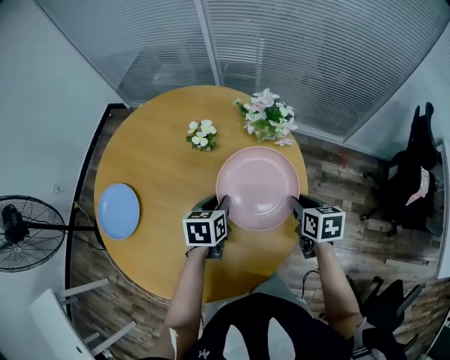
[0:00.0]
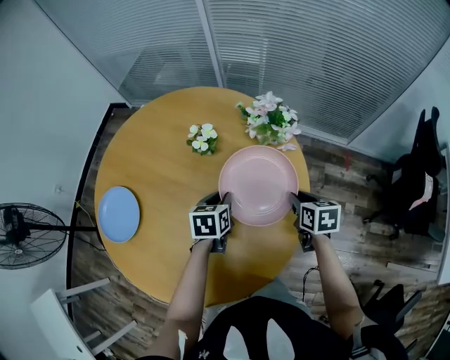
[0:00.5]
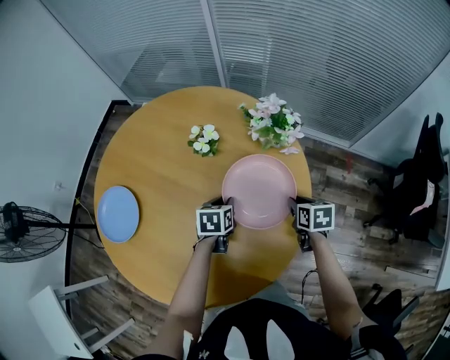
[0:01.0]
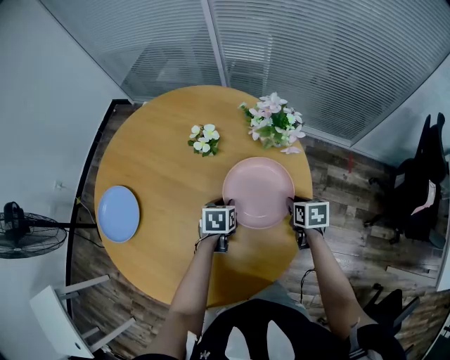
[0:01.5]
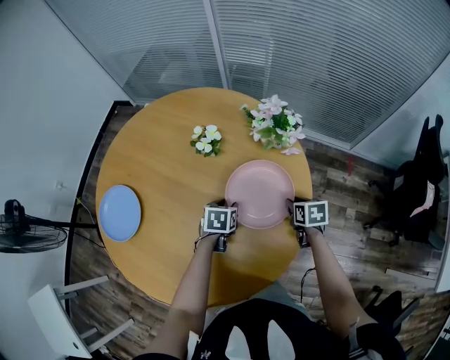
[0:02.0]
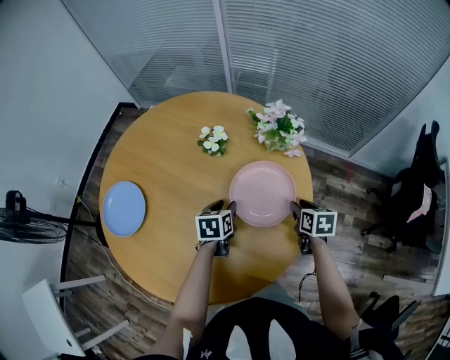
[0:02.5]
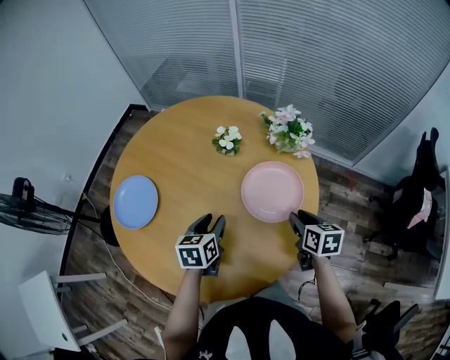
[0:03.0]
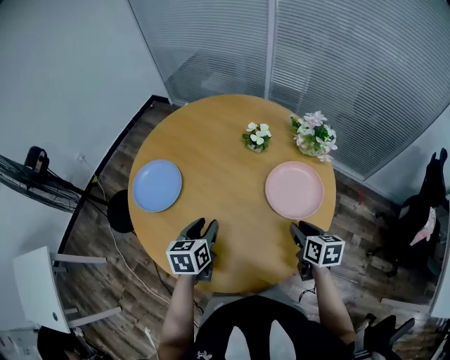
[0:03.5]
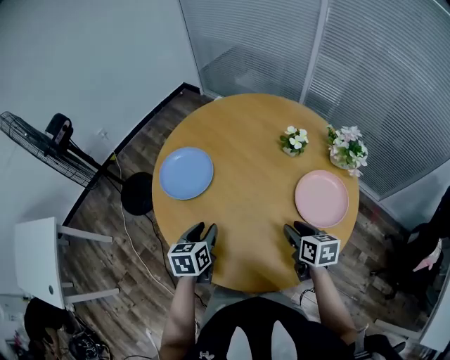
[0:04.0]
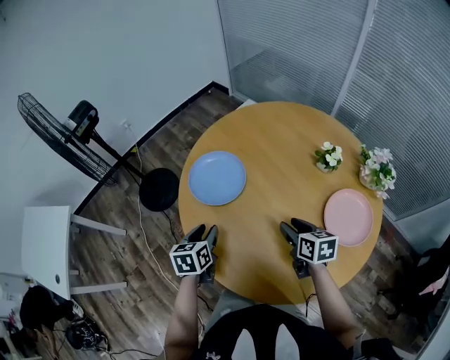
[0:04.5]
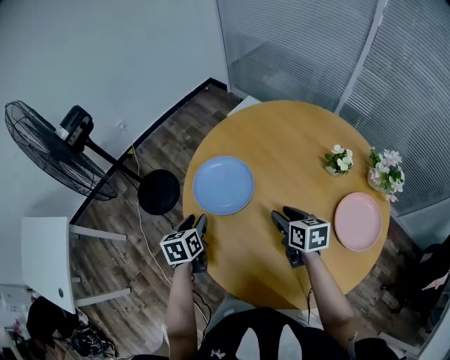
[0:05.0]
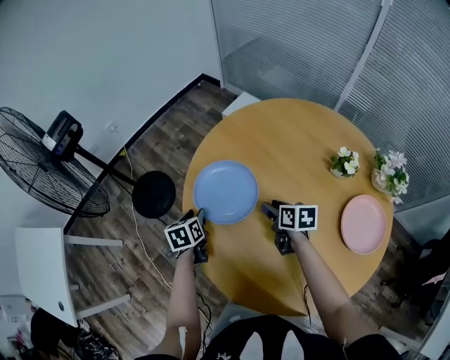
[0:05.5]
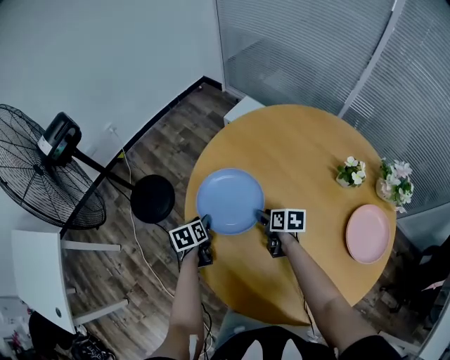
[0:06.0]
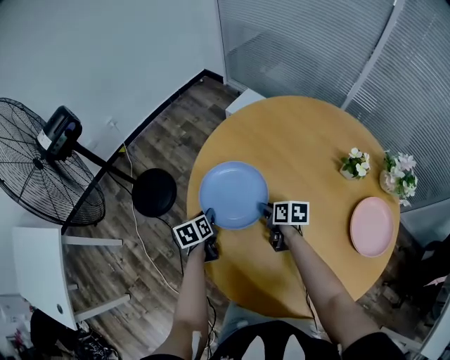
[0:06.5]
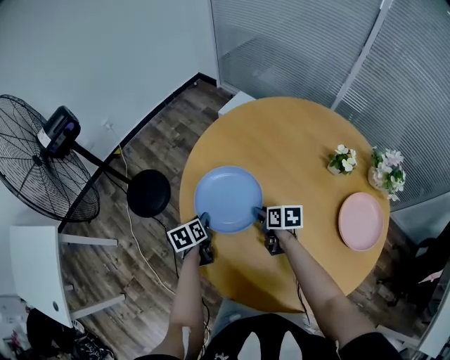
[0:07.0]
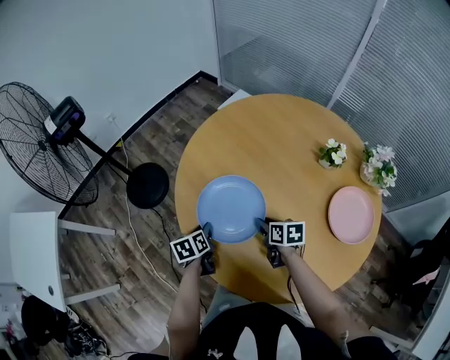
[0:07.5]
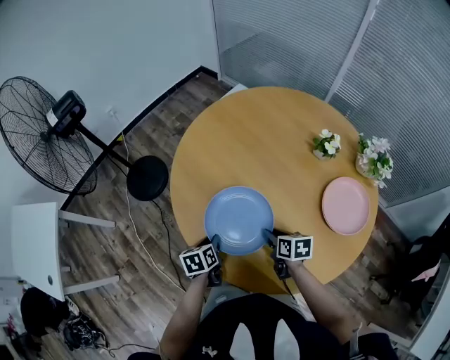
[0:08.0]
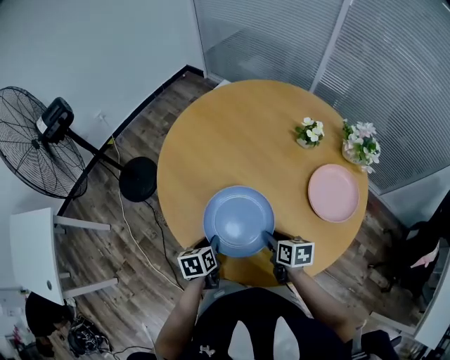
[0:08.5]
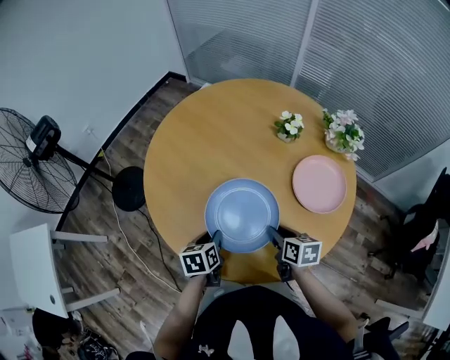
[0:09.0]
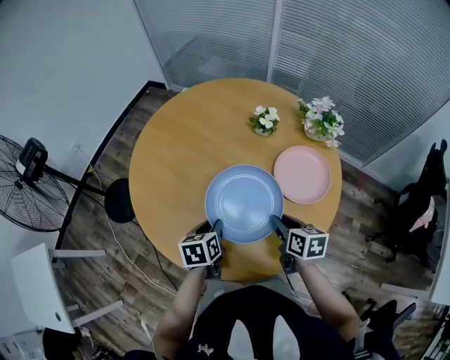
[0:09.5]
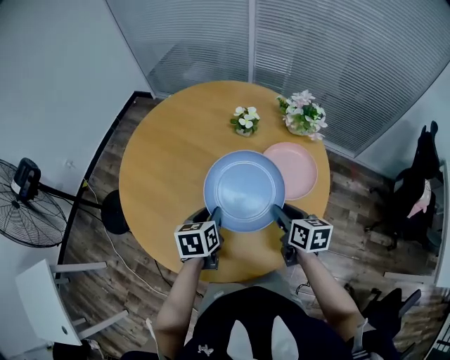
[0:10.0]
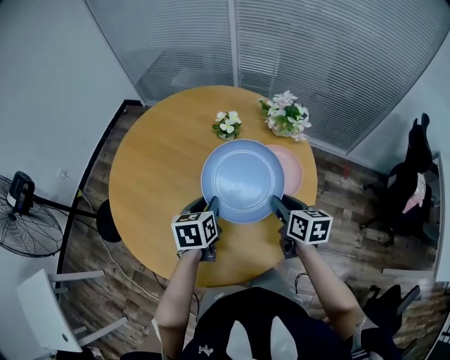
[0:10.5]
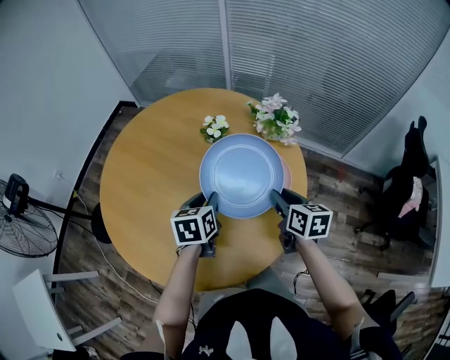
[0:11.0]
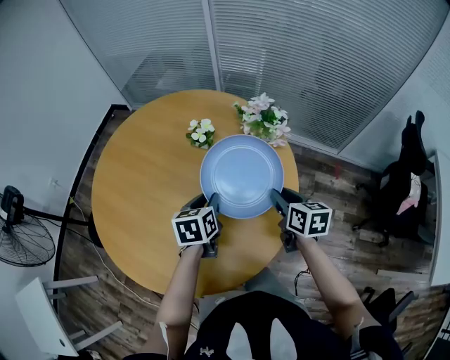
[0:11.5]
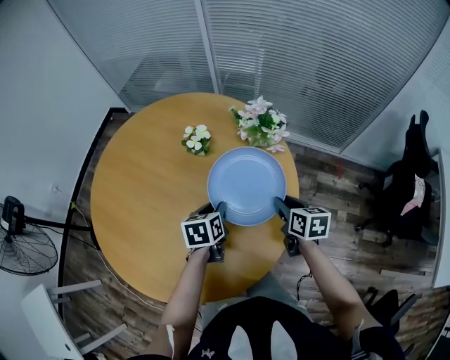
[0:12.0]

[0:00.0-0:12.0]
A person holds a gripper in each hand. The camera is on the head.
0:00.0 to 0:02.0: Both grippers move downward, roughly 10 cm. The left gripper opens.
0:02.0 to 0:04.0: The right gripper moves some 30 cm, and turns by approximately 20 degrees, while the left gripper ends up some 40 cm from where it was, and turns by some 40 degrees.
0:04.0 to 0:06.0: Both grippers travel together forward, to the left and downward, approximately 35 cm. The left gripper changes its angle by about 20 degrees.
0:06.0 to 0:08.0: The two grippers go approximately 25 cm backward.
0:08.0 to 0:10.0: Both grippers travel together to the right and upward, some 25 cm. The right gripper swivels about 30 degrees; the left gripper changes its angle by approximately 30 degrees.
0:10.0 to 0:12.0: Both grippers travel together to the right and forward, roughly 20 cm.

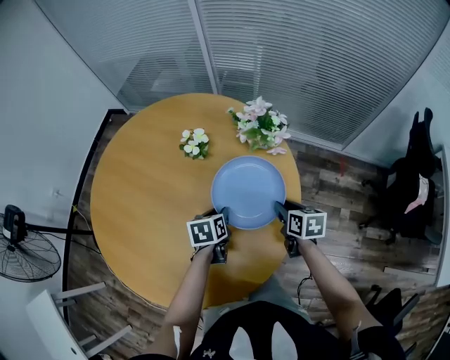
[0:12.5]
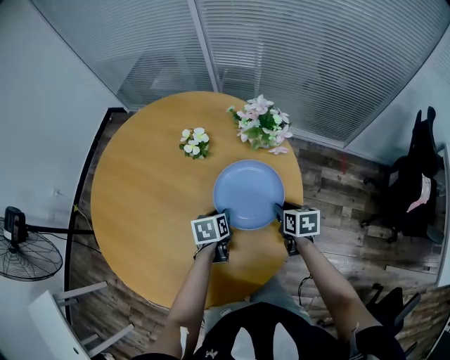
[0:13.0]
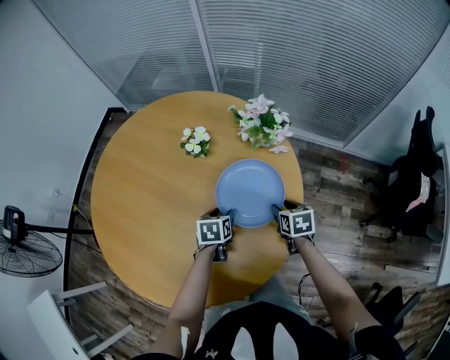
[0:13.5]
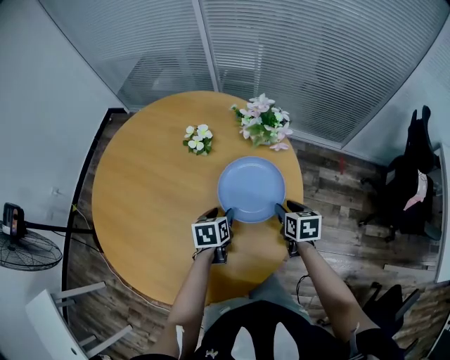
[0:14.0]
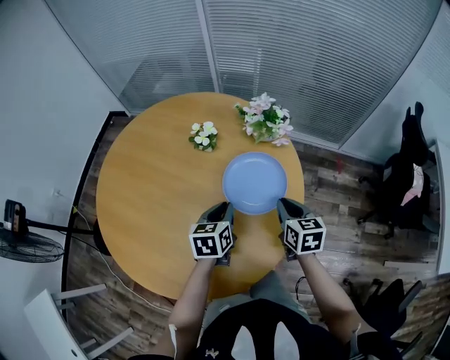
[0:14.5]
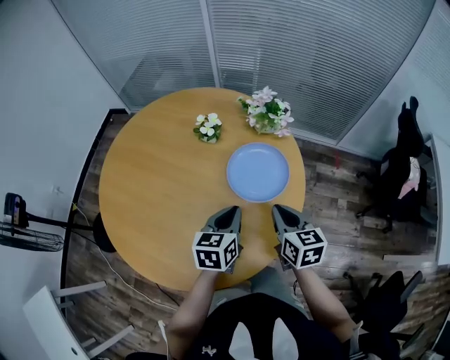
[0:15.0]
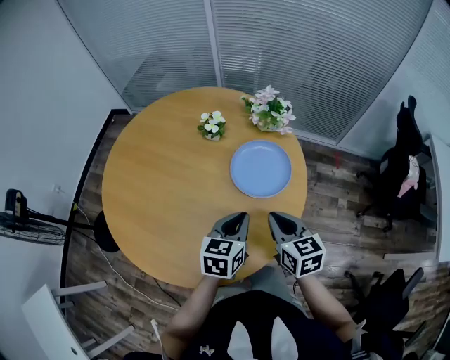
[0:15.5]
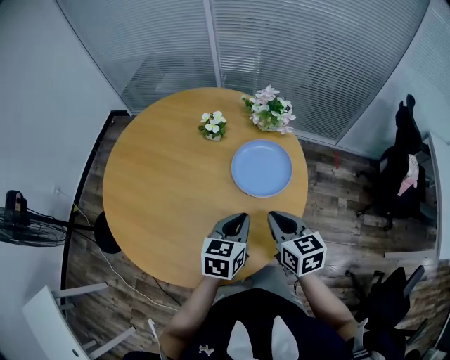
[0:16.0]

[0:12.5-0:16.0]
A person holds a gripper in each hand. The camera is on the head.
0:12.5 to 0:14.5: The left gripper moves upward, about 10 cm, and opens and closes again, while the right gripper is displaced upward and backward by some 10 cm.
0:14.5 to 0:16.0: The left gripper heads backward and upward, covering roughly 10 cm, while the right gripper moves backward, to the left and upward, approximately 15 cm.

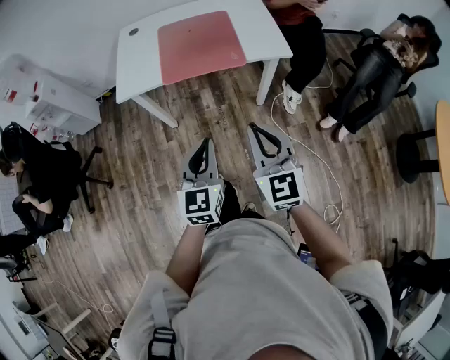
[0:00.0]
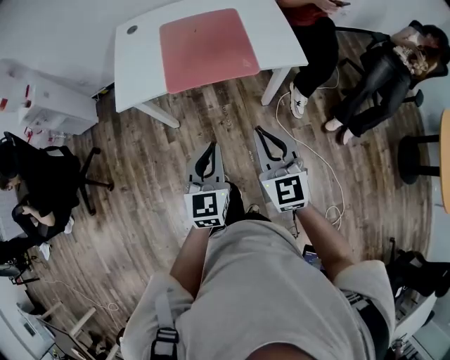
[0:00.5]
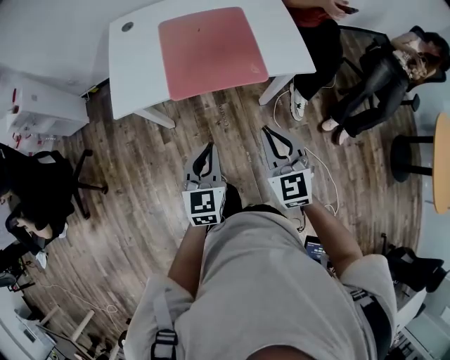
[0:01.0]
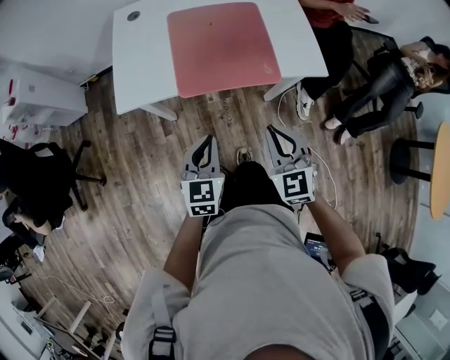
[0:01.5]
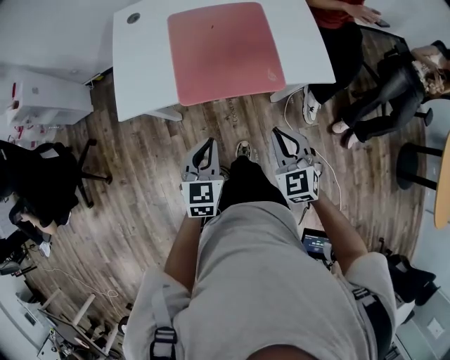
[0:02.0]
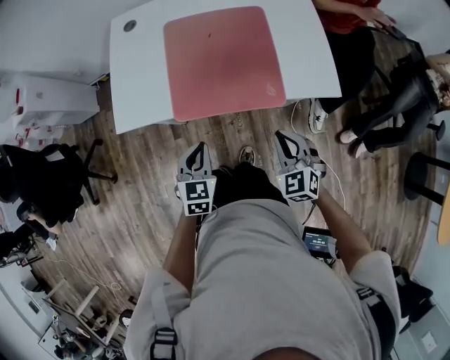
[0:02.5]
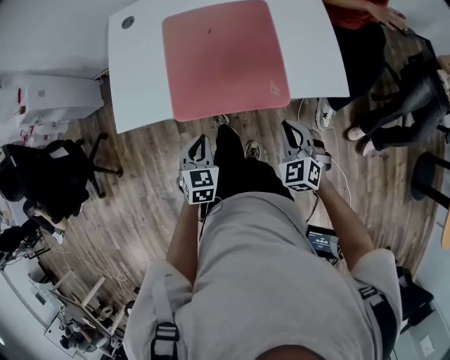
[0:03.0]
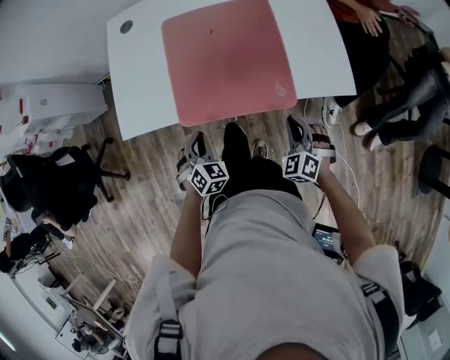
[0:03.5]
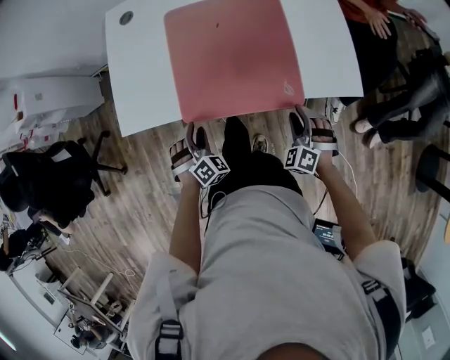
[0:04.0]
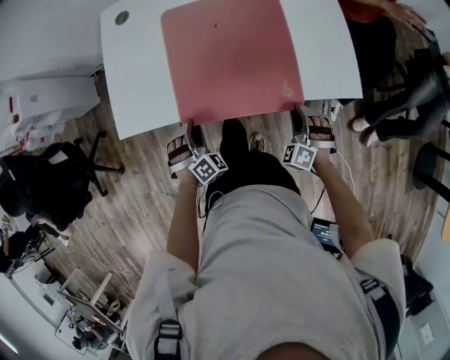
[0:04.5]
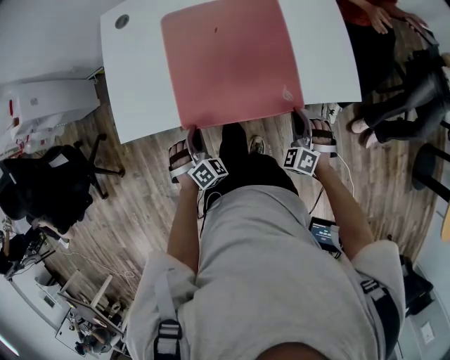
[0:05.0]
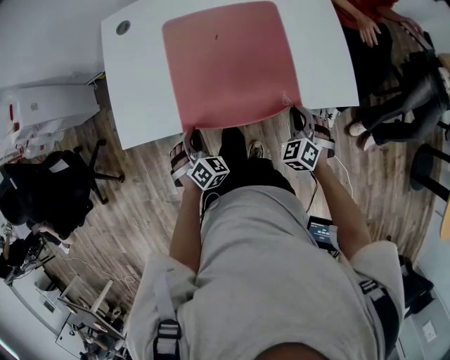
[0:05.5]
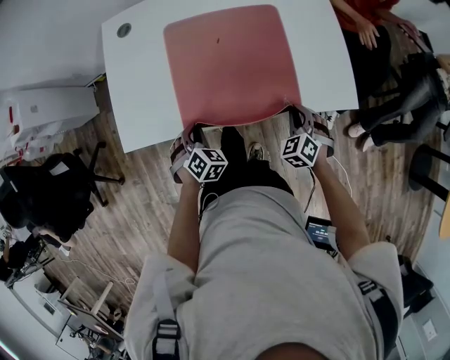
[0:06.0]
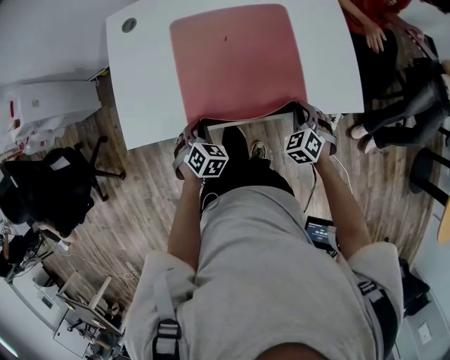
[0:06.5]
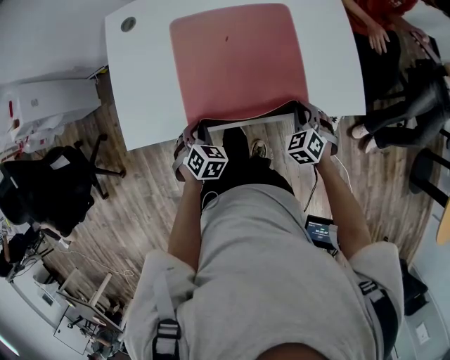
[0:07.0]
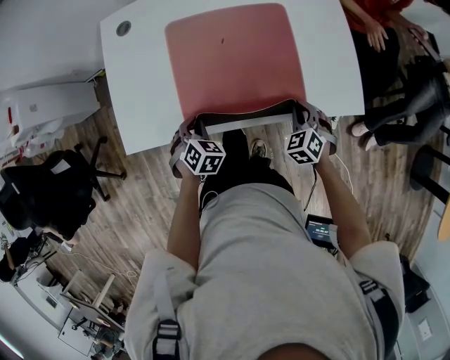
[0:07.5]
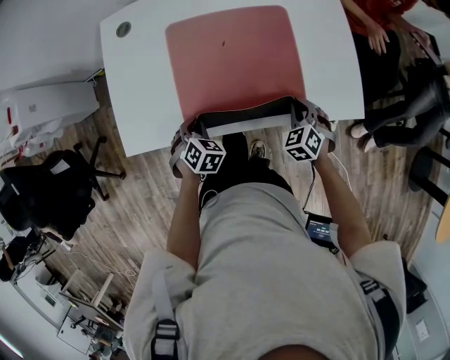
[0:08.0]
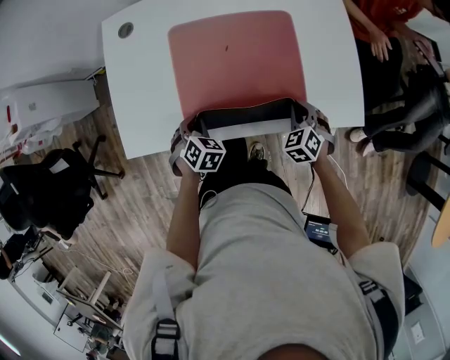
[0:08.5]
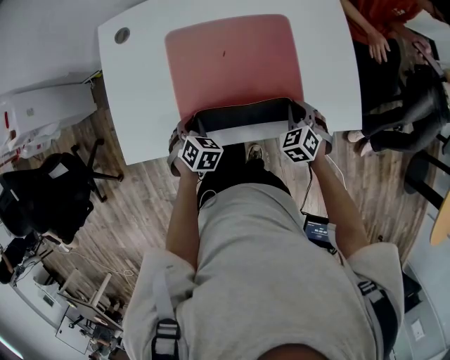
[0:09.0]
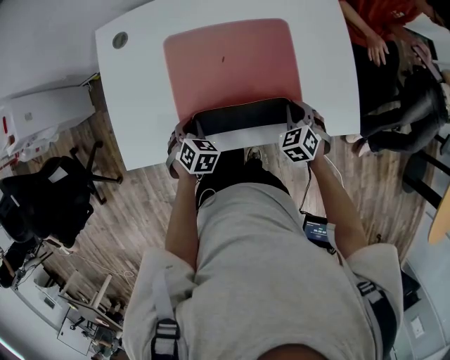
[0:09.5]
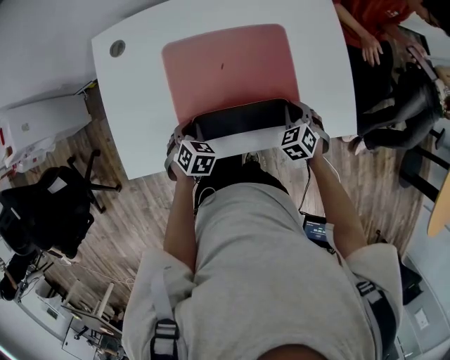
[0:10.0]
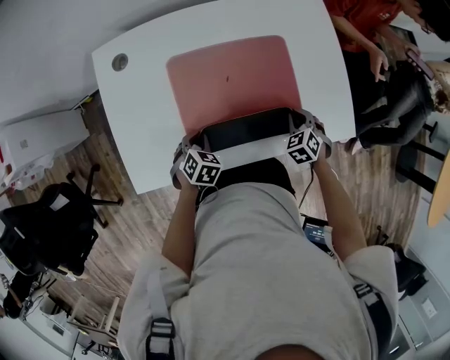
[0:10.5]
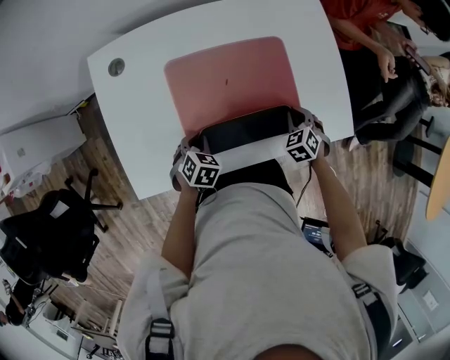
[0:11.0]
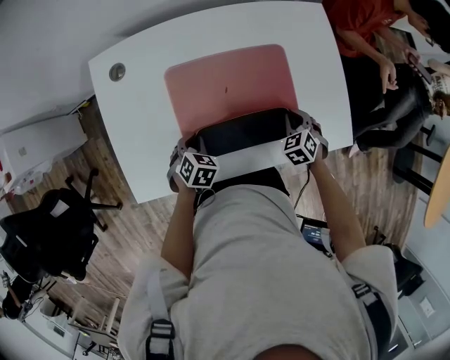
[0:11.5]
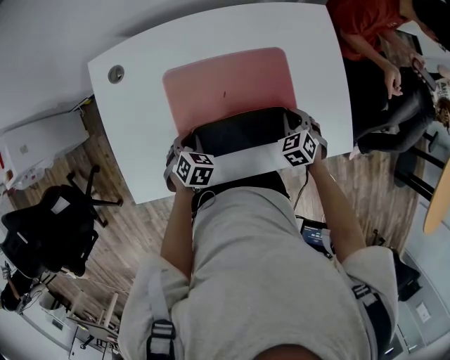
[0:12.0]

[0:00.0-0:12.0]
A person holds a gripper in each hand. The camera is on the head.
0:00.0 to 0:02.0: The two grippers go approximately 25 cm forward and downward. The right gripper turns by about 30 degrees.
0:02.0 to 0:04.0: The right gripper travels downward, forward and to the right by about 25 cm, rotates approximately 40 degrees, and opens; the left gripper goes some 20 cm downward and forward, rotates around the line of its fingers by roughly 50 degrees, clockwise from behind, and opens up.
0:04.0 to 0:06.0: Both grippers travel together forward, some 5 cm. The left gripper closes, while the right gripper turns by some 20 degrees, and closes its fingers.
0:06.0 to 0:08.0: The right gripper heads forward, covering some 5 cm.
0:08.0 to 0:10.0: The grippers both shift forward by approximately 5 cm.
0:10.0 to 0:12.0: The grippers both shift forward by some 5 cm.
